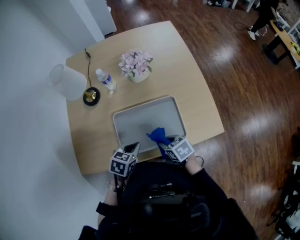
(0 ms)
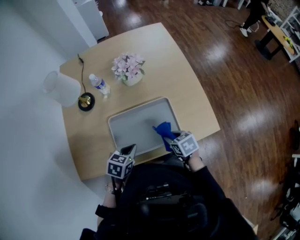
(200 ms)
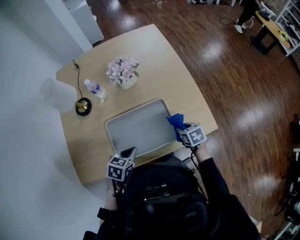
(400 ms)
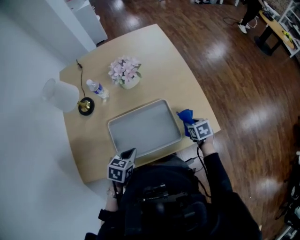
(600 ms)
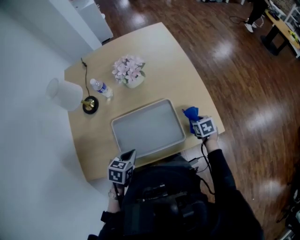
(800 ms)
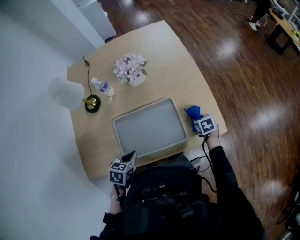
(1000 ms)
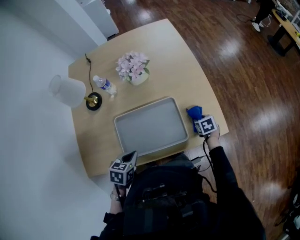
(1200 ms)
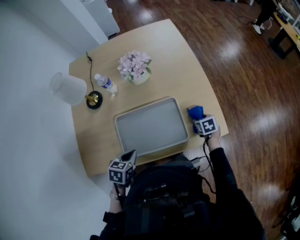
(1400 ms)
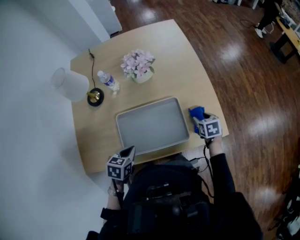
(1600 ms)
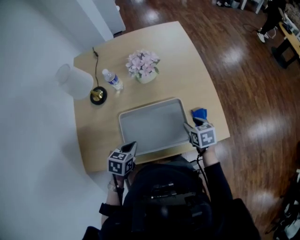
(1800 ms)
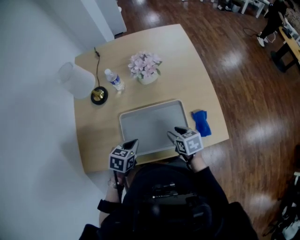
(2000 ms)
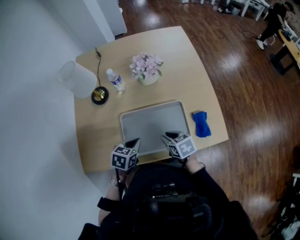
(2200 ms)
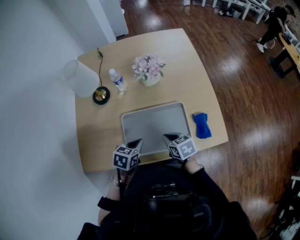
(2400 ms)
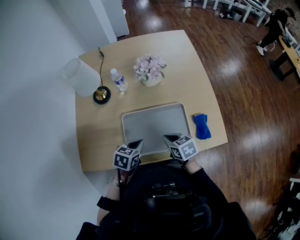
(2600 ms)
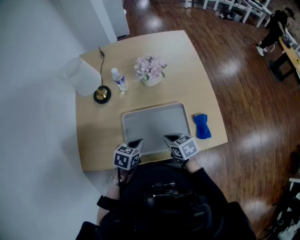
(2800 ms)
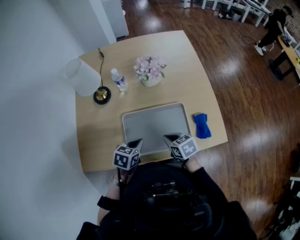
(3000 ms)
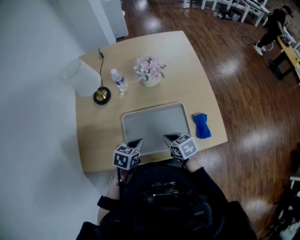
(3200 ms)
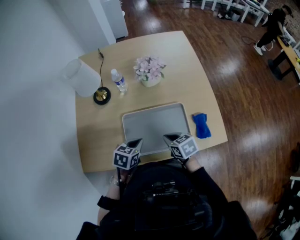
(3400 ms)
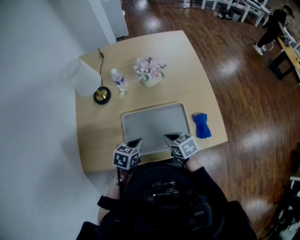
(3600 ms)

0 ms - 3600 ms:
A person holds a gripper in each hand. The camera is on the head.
0 ms - 1800 ms: The right gripper heads to the right and forward, covering roughly 15 cm, changes its angle by roughly 20 degrees, and opens its fingers.
1800 ms - 3600 ms: The right gripper moves to the left, about 15 cm, swivels some 20 degrees, and closes its fingers.

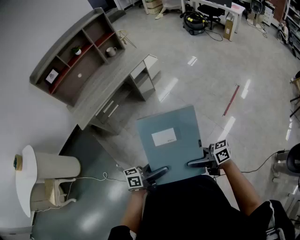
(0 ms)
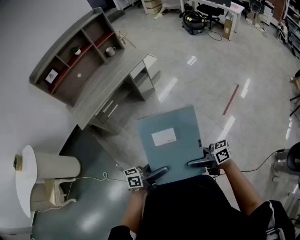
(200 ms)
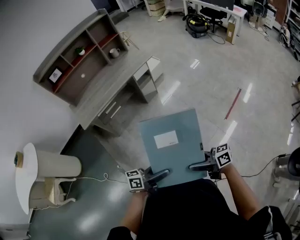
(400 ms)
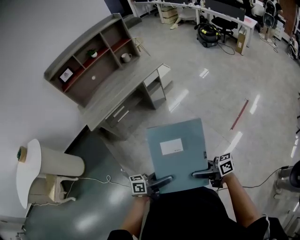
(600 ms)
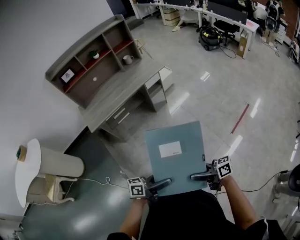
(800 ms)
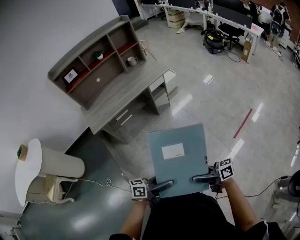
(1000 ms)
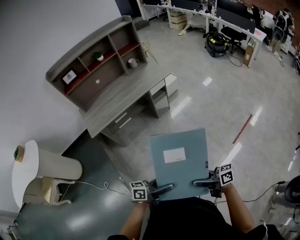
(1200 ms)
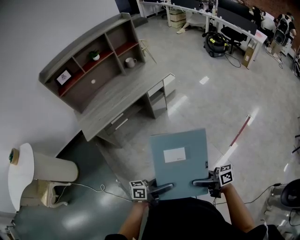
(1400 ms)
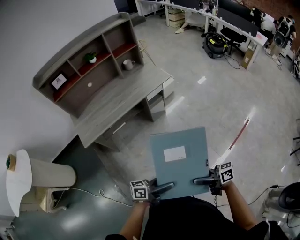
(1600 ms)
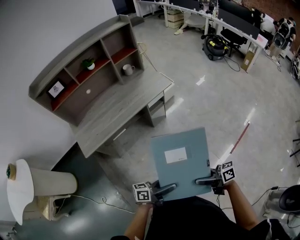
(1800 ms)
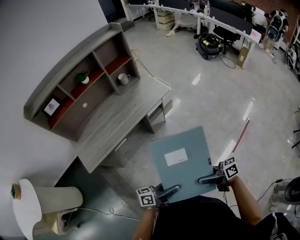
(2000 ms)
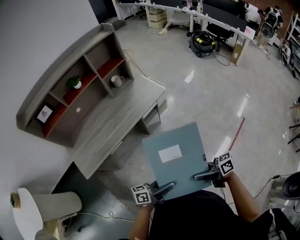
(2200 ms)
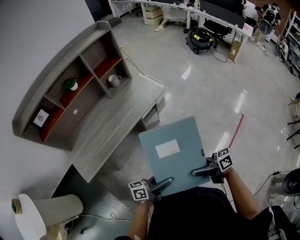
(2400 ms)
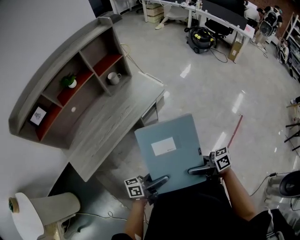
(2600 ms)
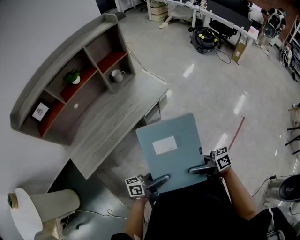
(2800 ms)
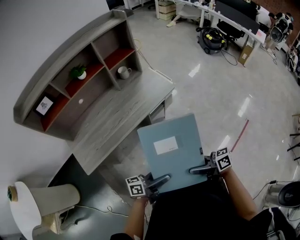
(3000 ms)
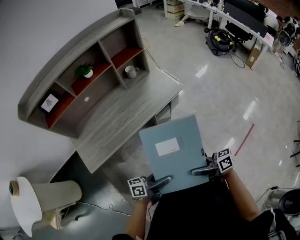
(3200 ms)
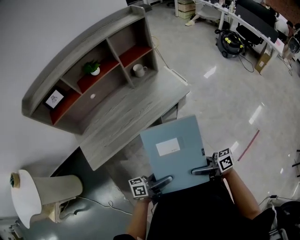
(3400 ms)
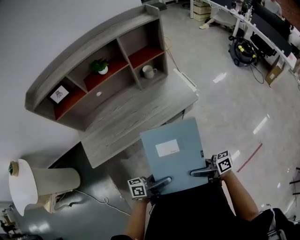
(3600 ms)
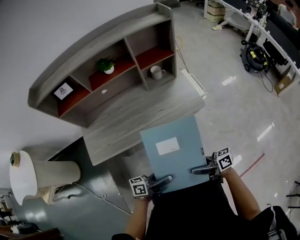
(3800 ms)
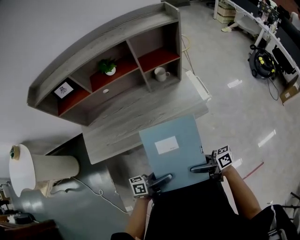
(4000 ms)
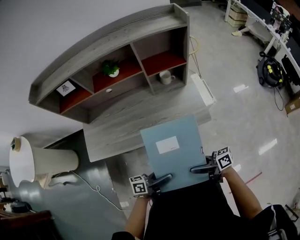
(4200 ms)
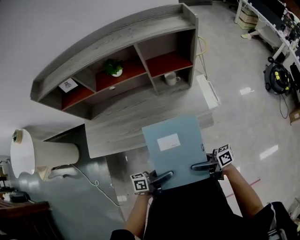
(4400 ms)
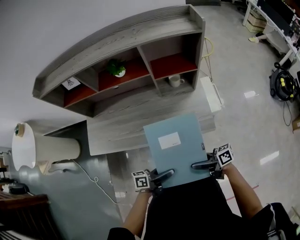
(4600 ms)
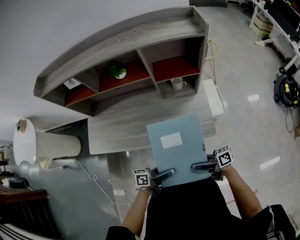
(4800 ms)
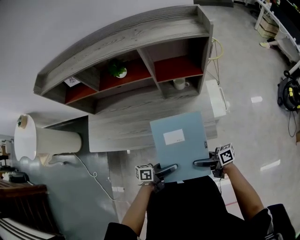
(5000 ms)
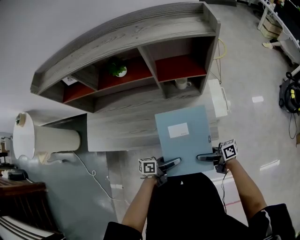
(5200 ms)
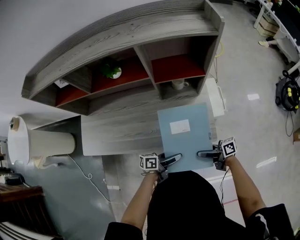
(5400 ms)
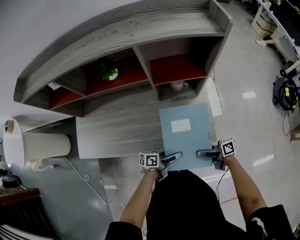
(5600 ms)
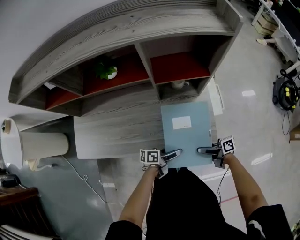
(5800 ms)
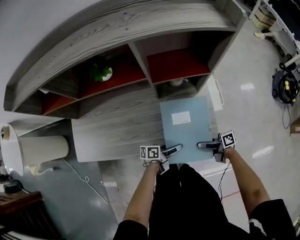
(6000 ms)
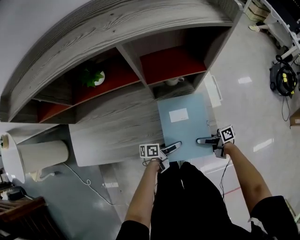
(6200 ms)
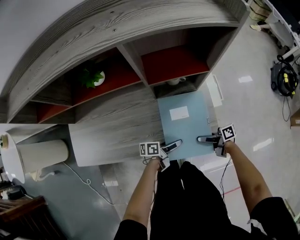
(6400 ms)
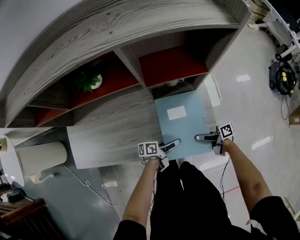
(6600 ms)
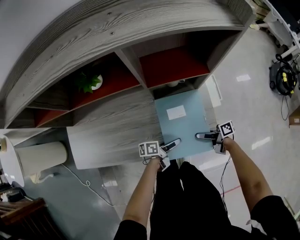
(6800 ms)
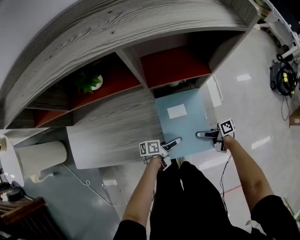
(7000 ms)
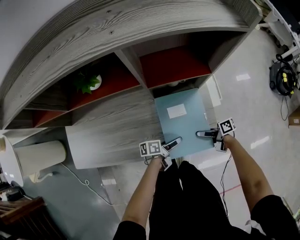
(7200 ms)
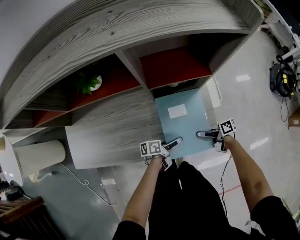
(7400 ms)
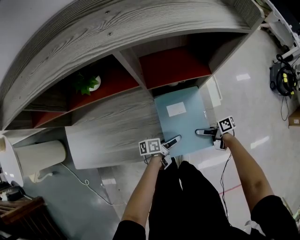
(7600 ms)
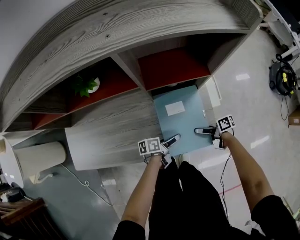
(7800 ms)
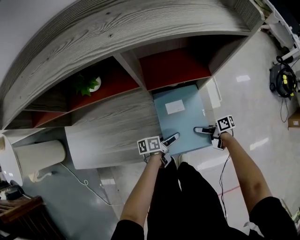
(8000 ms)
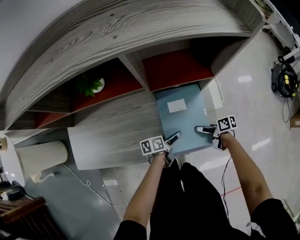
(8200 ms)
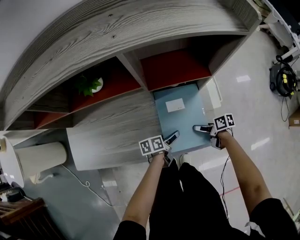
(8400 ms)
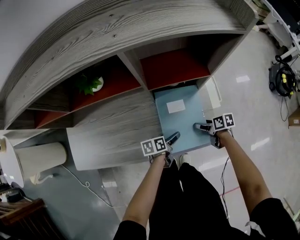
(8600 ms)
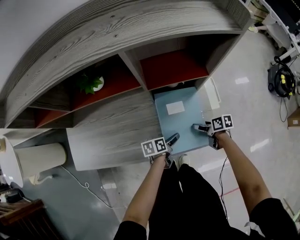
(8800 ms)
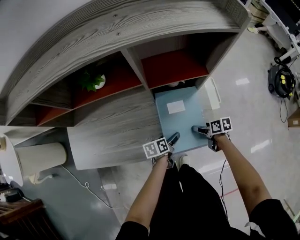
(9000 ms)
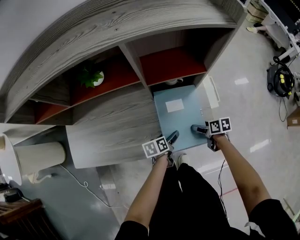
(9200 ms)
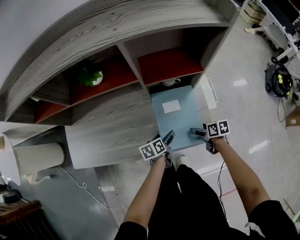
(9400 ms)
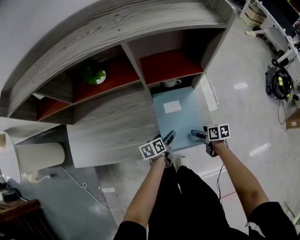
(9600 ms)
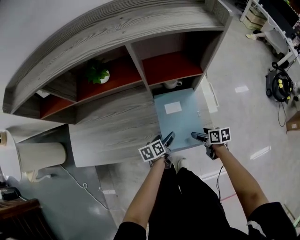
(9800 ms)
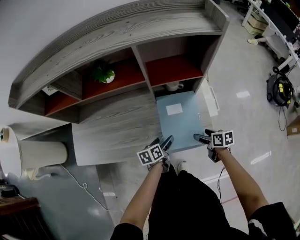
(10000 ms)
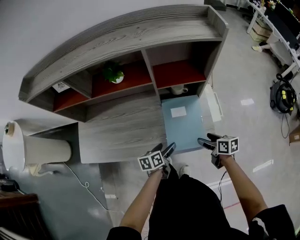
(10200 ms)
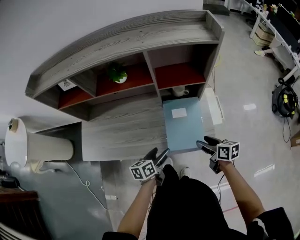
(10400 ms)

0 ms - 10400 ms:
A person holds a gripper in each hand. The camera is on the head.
0 ms - 1400 ms: The left gripper ends up about 10 cm from where it was; the right gripper ends up roughly 10 cm from where it was.
1400 ms - 3000 ms: The right gripper ends up about 35 cm from where it was, while the left gripper moves approximately 35 cm.
3000 ms - 4400 ms: The left gripper changes place by some 30 cm, and swivels roughly 30 degrees. Meanwhile the right gripper changes place by approximately 35 cm, and turns by about 30 degrees.
4400 ms - 6000 ms: The left gripper changes place by roughly 30 cm. Meanwhile the right gripper changes place by about 30 cm.
6000 ms - 7400 ms: The right gripper shifts by some 10 cm. Meanwhile the left gripper shifts by about 5 cm.
7400 ms - 9000 ms: The right gripper points its fingers about 30 degrees further downward; the left gripper turns by some 30 degrees.
9000 ms - 10400 ms: The left gripper is displaced upward, backward and to the left by some 20 cm, and rotates some 20 degrees, while the right gripper goes about 20 cm upward and backward, and changes its angle by roughly 20 degrees.

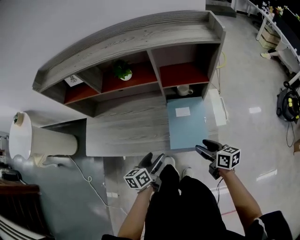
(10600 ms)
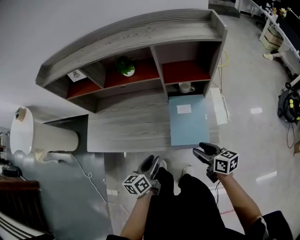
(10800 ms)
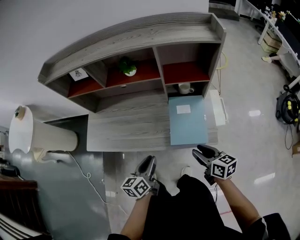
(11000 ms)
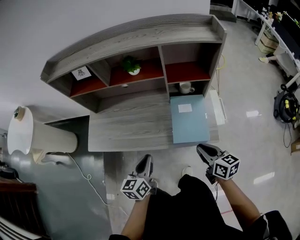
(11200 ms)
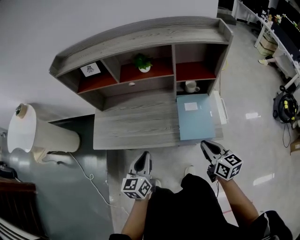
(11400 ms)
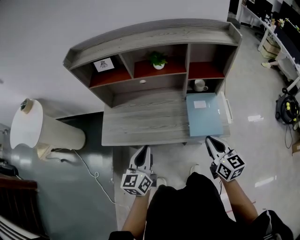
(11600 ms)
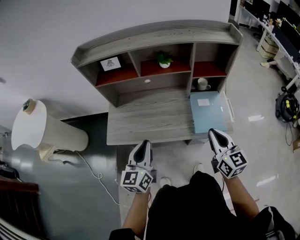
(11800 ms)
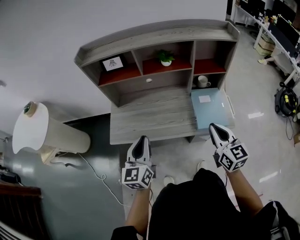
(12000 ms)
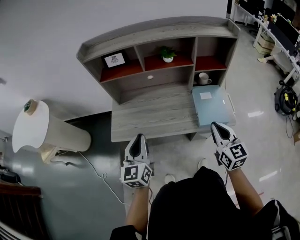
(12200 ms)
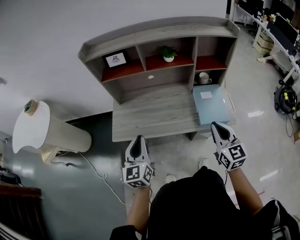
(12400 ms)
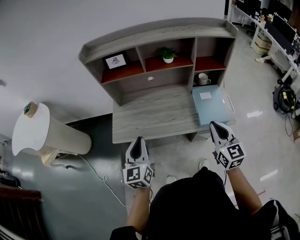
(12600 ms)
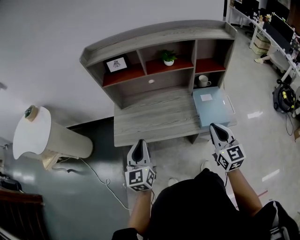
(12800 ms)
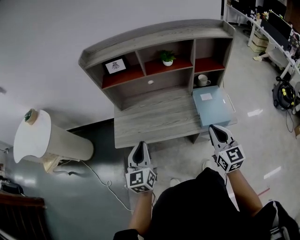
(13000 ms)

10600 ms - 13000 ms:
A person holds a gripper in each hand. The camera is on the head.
10600 ms - 11800 ms: The left gripper goes approximately 30 cm to the left and upward, swivels some 40 degrees, and closes; the right gripper is displaced upward and to the left by some 25 cm, changes its angle by approximately 40 degrees, and closes its fingers.
11800 ms - 13000 ms: The right gripper is displaced to the left by about 5 cm. Meanwhile the left gripper travels to the left by some 10 cm.

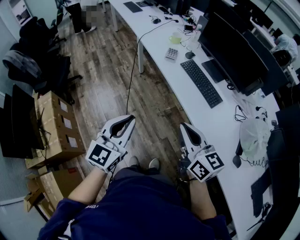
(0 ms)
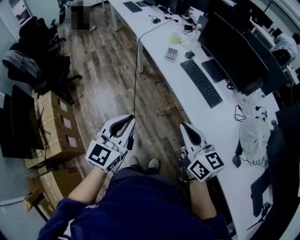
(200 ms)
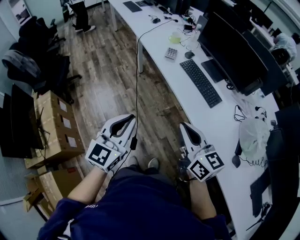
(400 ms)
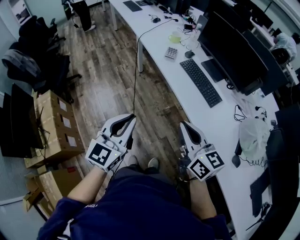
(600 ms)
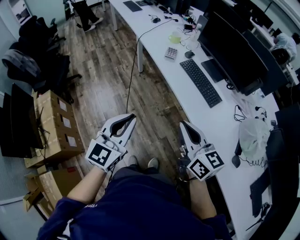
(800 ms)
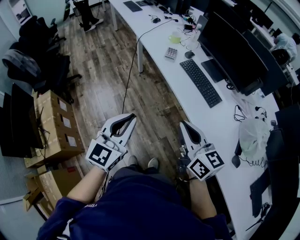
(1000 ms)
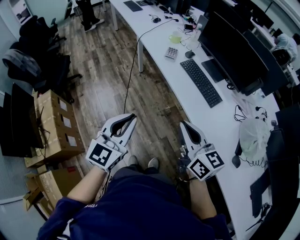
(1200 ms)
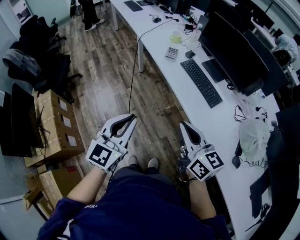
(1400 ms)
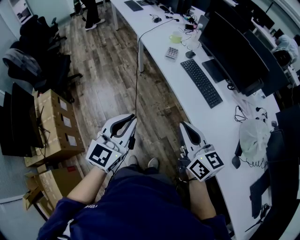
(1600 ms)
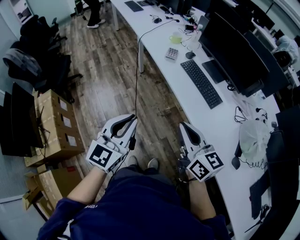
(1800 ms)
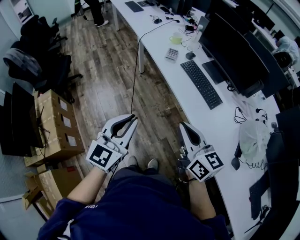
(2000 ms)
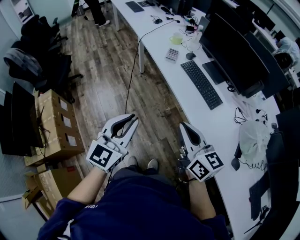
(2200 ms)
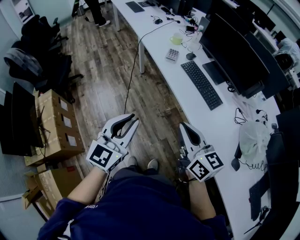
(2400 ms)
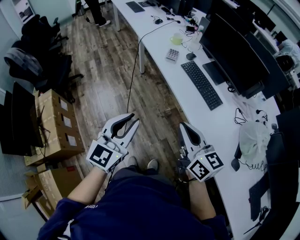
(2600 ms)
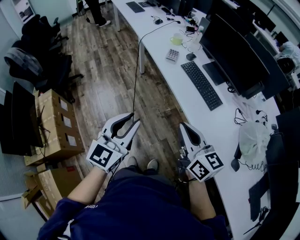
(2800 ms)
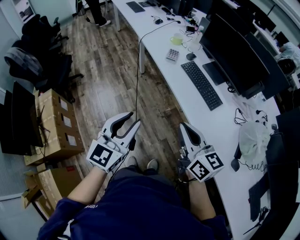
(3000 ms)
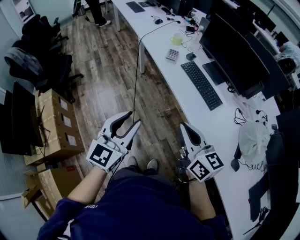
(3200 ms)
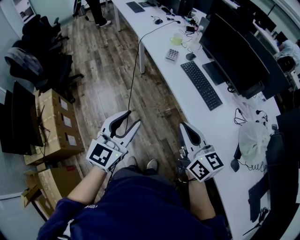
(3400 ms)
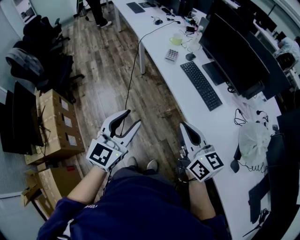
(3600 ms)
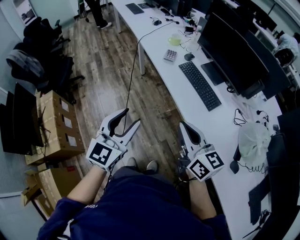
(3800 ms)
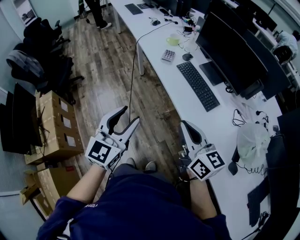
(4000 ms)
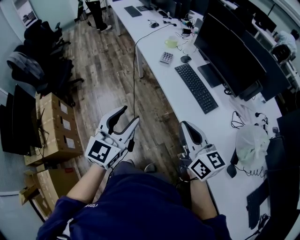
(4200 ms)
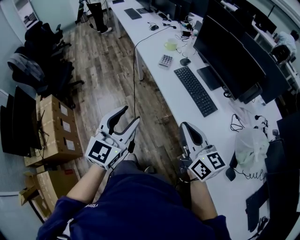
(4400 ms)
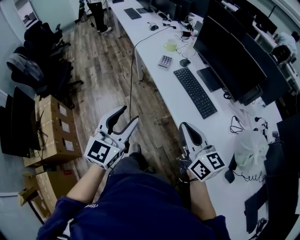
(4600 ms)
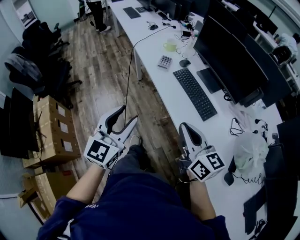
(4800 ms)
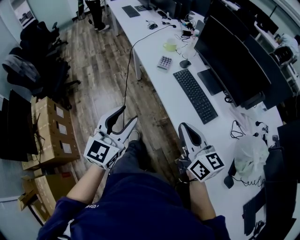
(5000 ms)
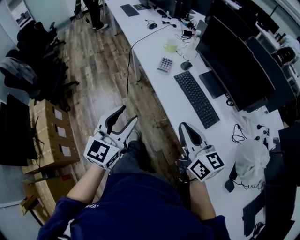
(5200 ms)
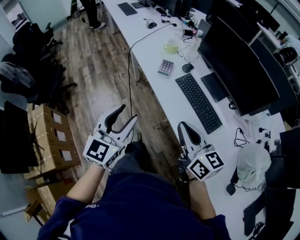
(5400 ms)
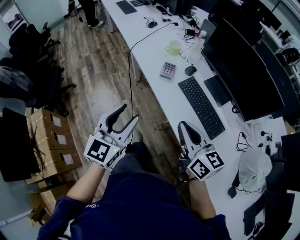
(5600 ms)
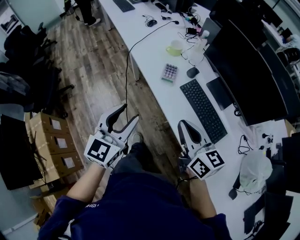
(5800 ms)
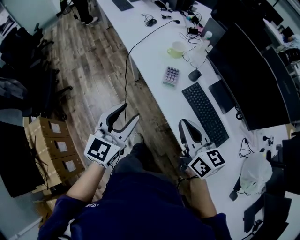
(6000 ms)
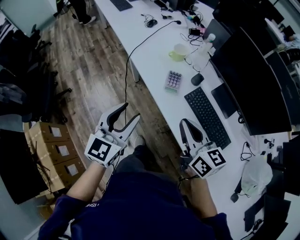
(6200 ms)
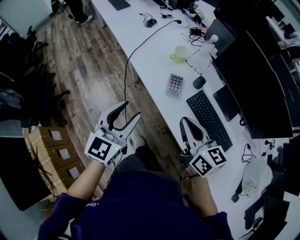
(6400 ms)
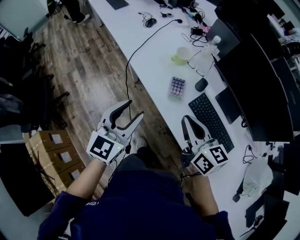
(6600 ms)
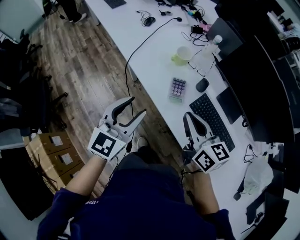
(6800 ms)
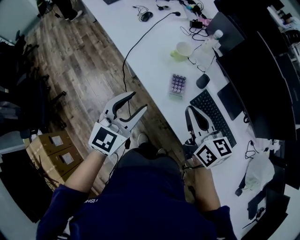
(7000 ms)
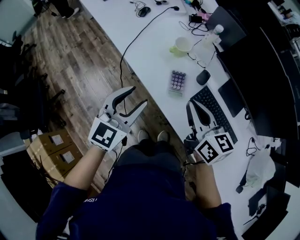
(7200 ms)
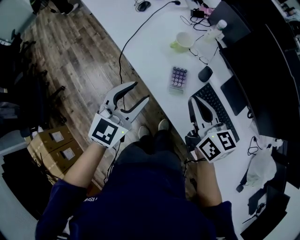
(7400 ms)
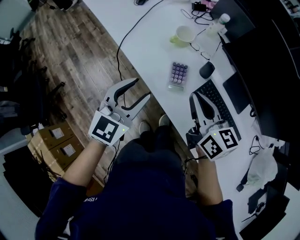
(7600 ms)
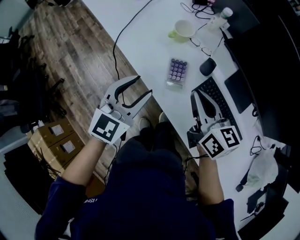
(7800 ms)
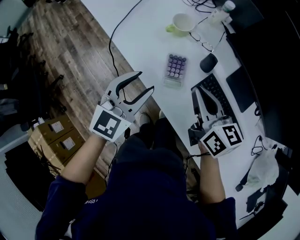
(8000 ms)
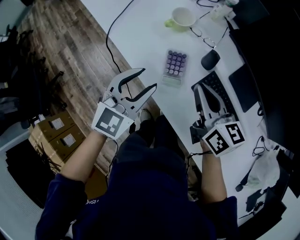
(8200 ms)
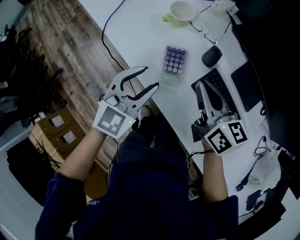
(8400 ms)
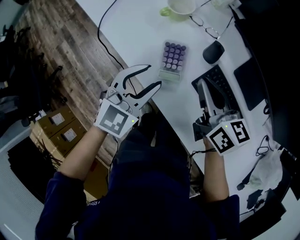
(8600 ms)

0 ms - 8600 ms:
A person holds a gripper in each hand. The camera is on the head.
0 ms - 1400 ms: Neither gripper changes place.
1400 ms - 2800 ms: The two grippers keep their place.
2800 ms - 4400 ms: Both grippers move to the right, about 10 cm. The left gripper opens its fingers.
4400 ms - 5800 ms: Both grippers move forward, roughly 25 cm.
5800 ms - 7200 ms: The grippers both shift forward by roughly 25 cm.
7200 ms - 8600 ms: Both grippers travel together downward, to the right and forward, some 20 cm.
